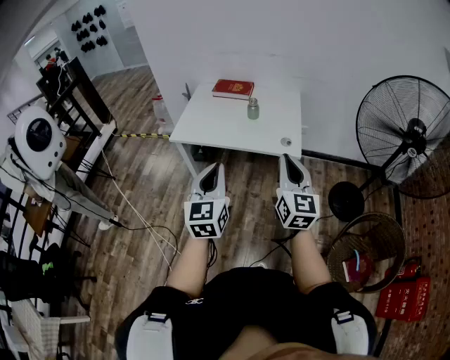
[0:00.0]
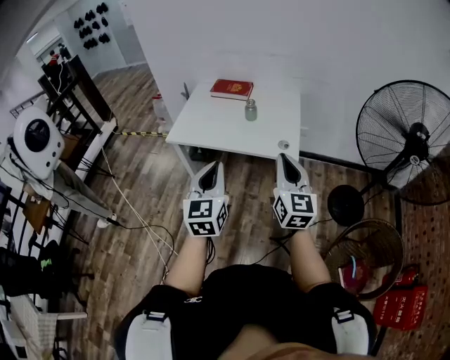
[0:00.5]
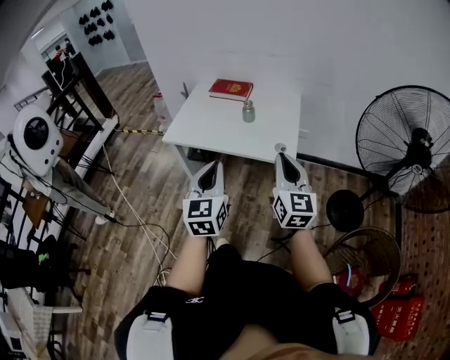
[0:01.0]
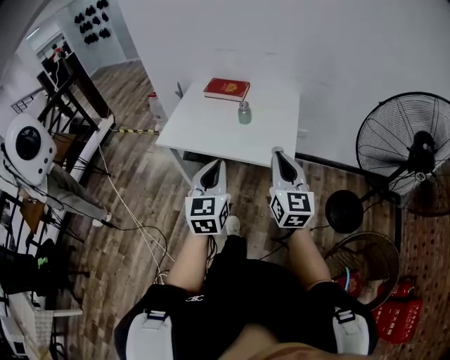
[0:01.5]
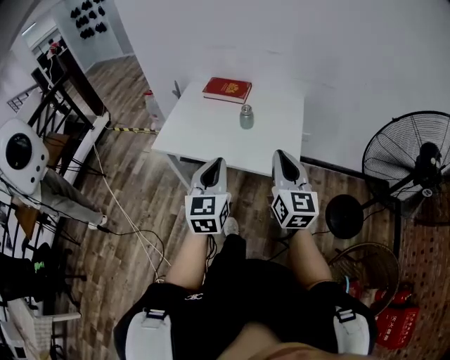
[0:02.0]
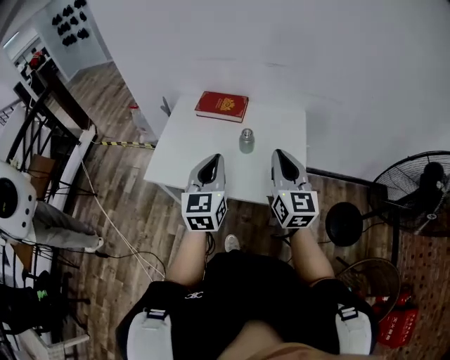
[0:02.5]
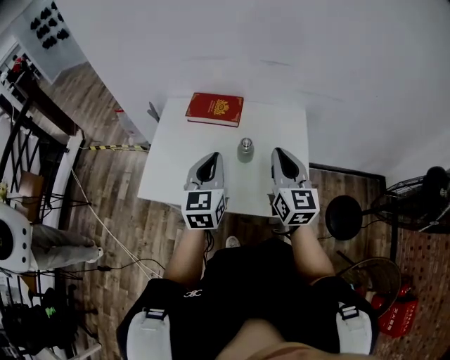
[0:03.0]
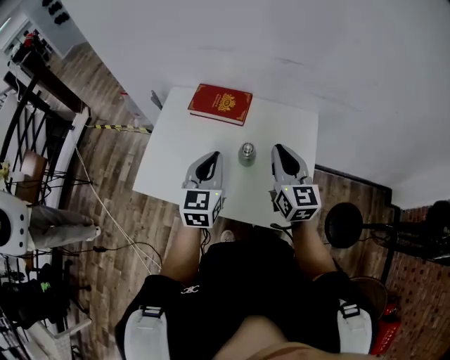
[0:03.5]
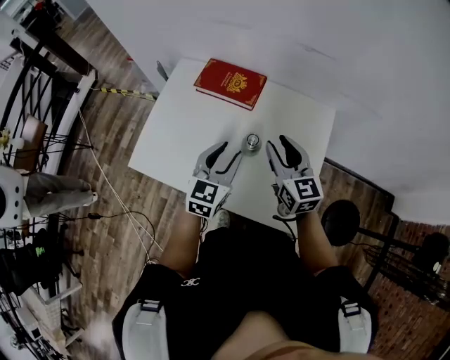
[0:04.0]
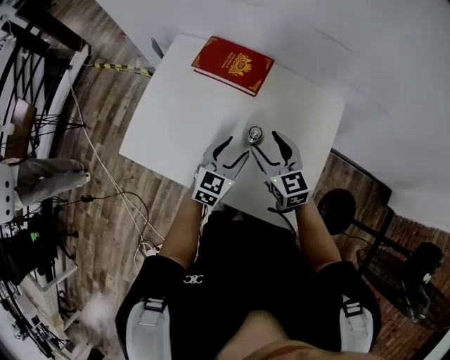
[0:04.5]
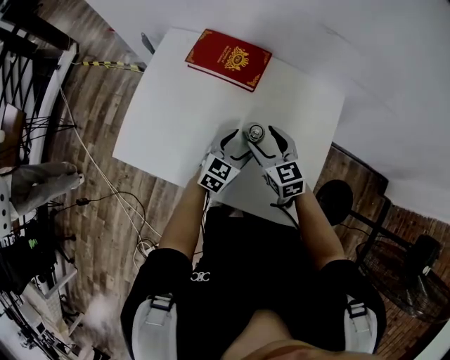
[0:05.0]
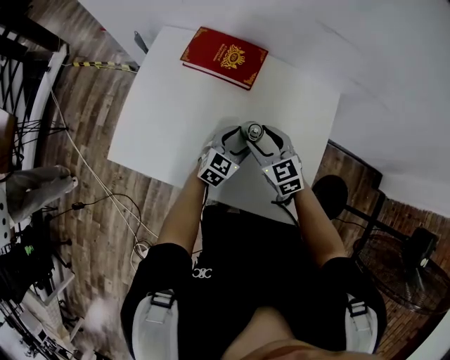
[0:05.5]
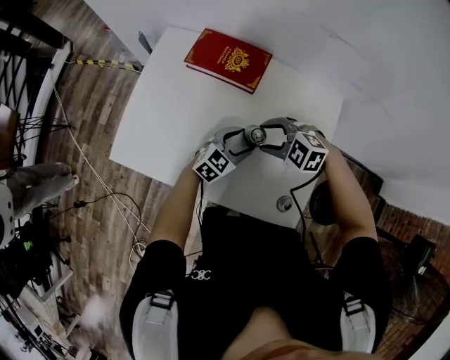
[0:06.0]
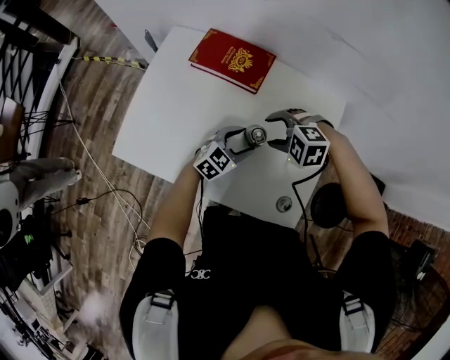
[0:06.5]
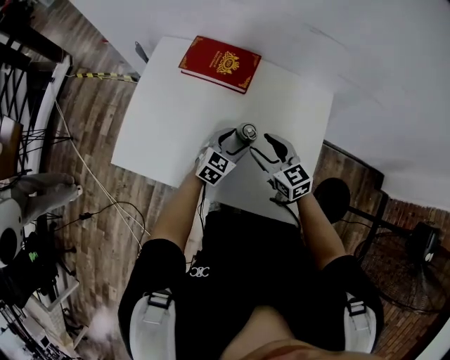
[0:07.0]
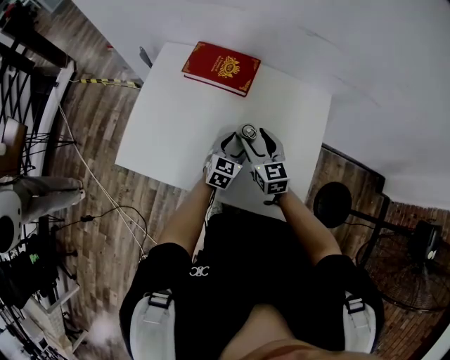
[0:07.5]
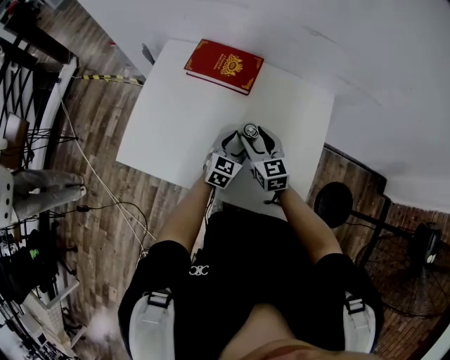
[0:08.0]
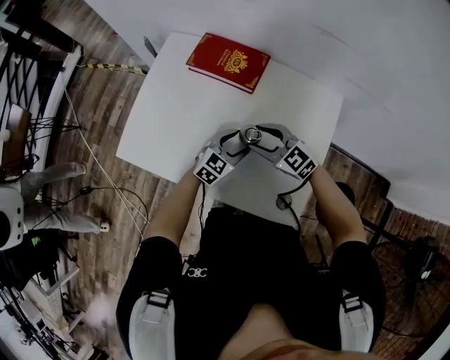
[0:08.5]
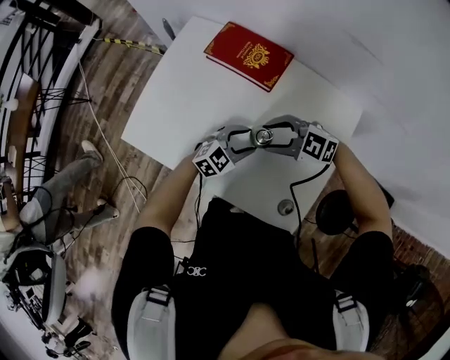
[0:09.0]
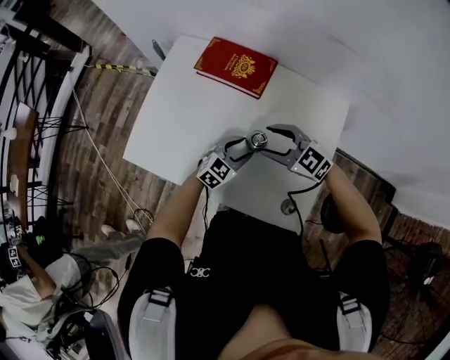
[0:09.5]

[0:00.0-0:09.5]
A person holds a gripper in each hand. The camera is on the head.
0:00.0 to 0:02.0: The right gripper goes about 20 cm forward. Meanwhile the left gripper travels forward and to the right by about 20 cm.
0:02.0 to 0:04.0: The grippers both shift forward by about 40 cm. The right gripper changes its angle by some 20 degrees, and opens; the left gripper opens up.
0:04.0 to 0:05.5: The two grippers go roughly 15 cm downward. The right gripper changes its angle by about 30 degrees, and opens, while the left gripper opens up.
0:05.5 to 0:07.5: The right gripper changes its angle by about 20 degrees.
0:07.5 to 0:09.5: The right gripper rotates roughly 50 degrees.

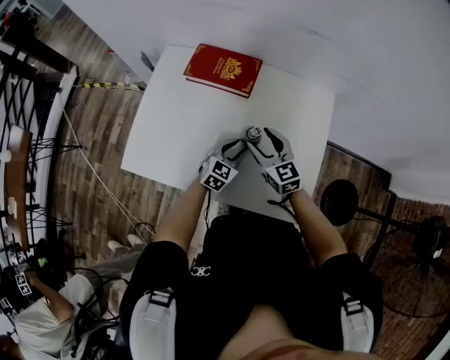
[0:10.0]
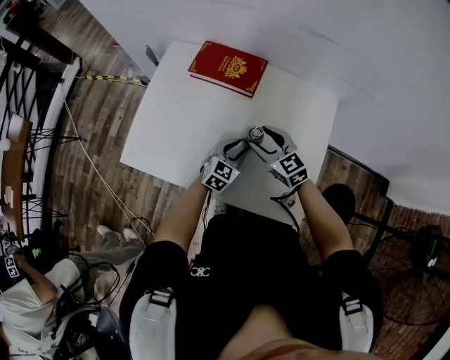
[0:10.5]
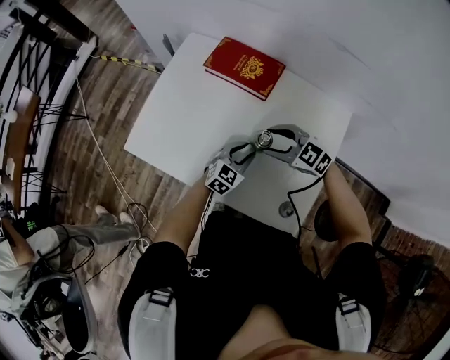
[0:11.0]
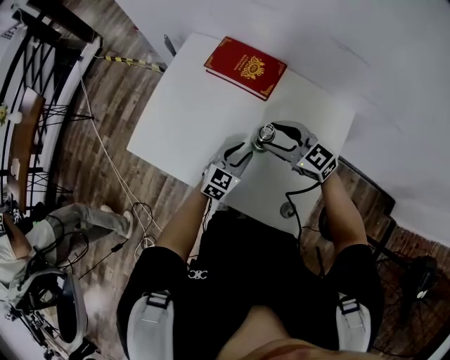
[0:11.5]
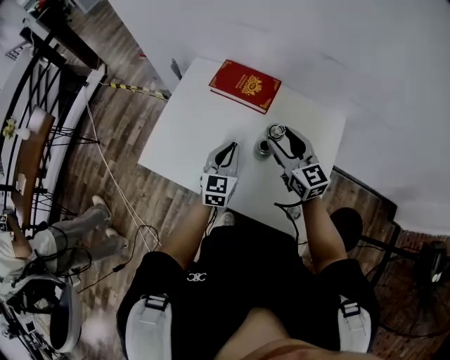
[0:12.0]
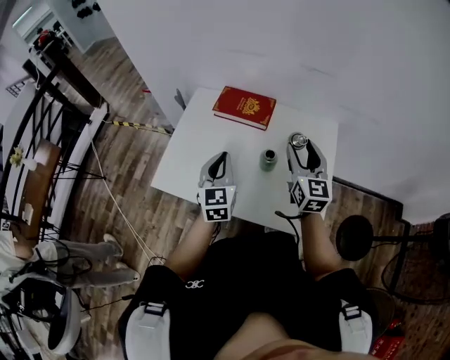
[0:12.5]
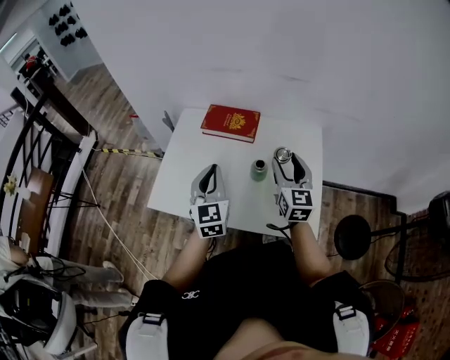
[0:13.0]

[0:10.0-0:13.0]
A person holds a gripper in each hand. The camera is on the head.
0:10.0 to 0:11.5: The right gripper changes place by approximately 5 cm, and rotates approximately 40 degrees.
0:11.5 to 0:13.0: The left gripper moves upward and to the left, roughly 25 cm, turns by roughly 30 degrees, and closes its fingers, while the right gripper is displaced upward and backward by roughly 15 cm, and swivels about 70 degrees.

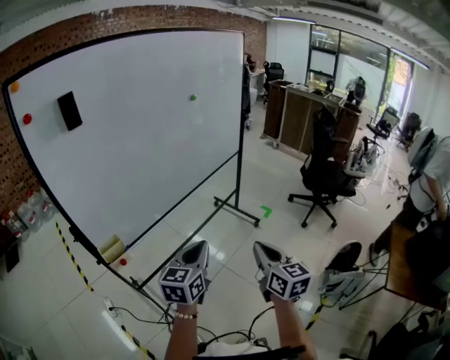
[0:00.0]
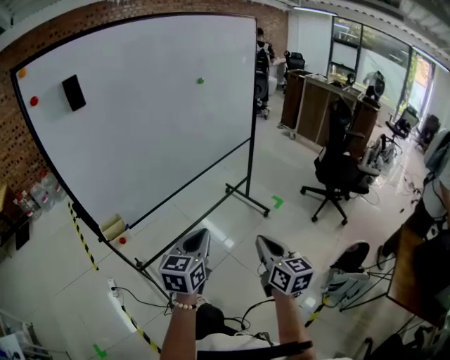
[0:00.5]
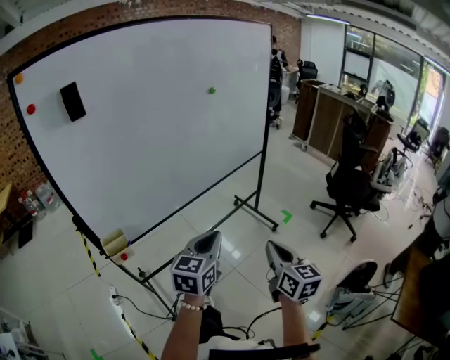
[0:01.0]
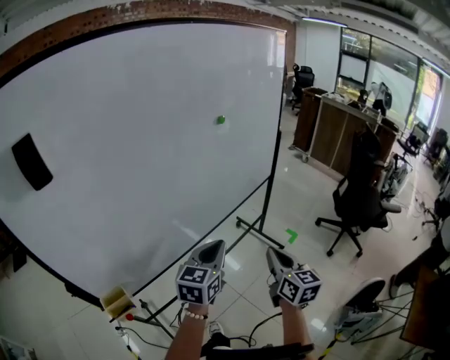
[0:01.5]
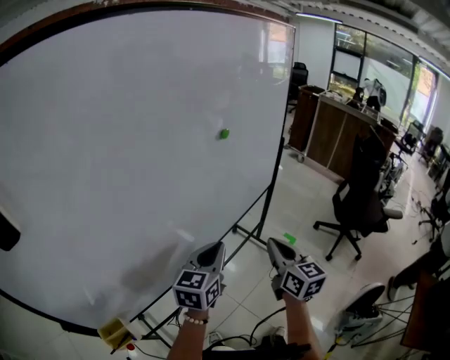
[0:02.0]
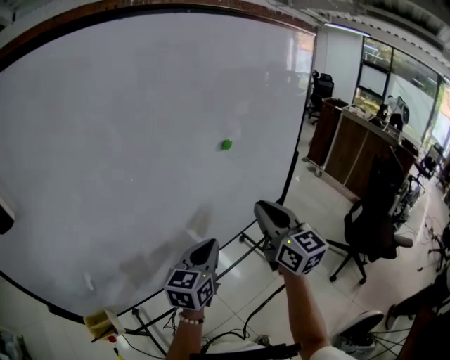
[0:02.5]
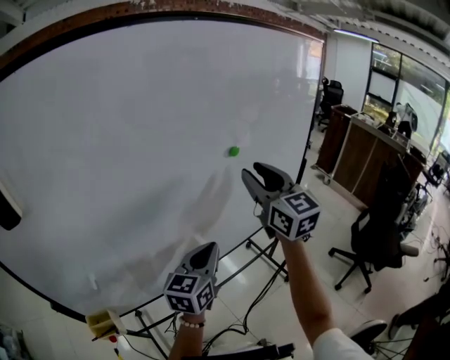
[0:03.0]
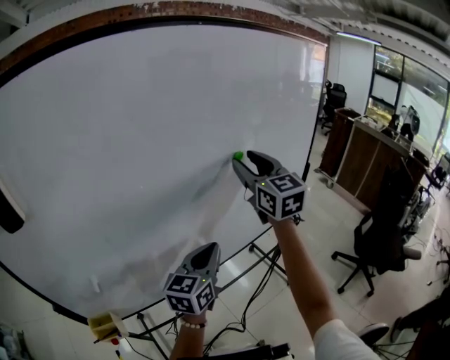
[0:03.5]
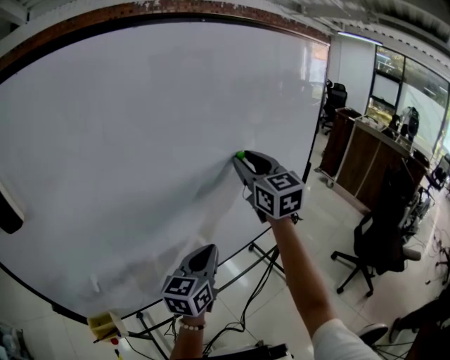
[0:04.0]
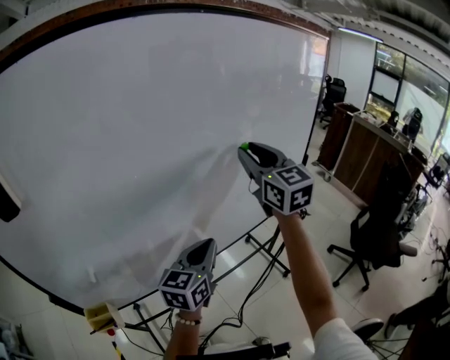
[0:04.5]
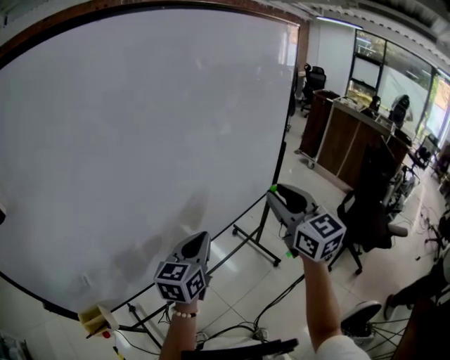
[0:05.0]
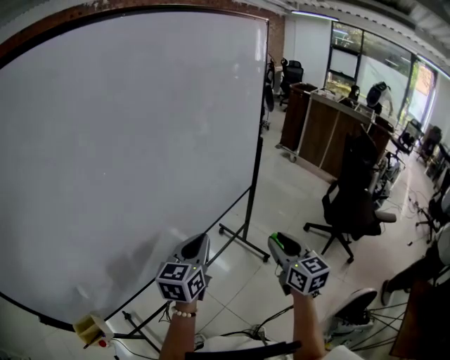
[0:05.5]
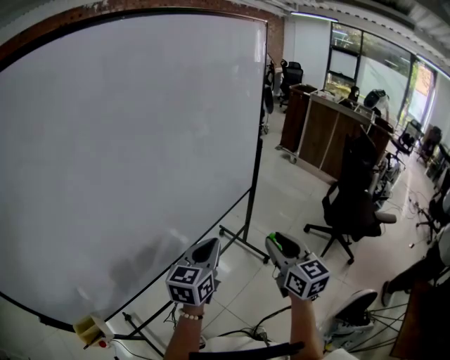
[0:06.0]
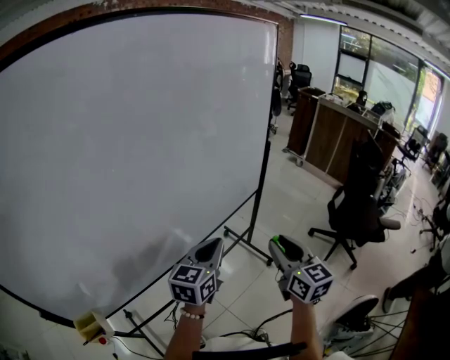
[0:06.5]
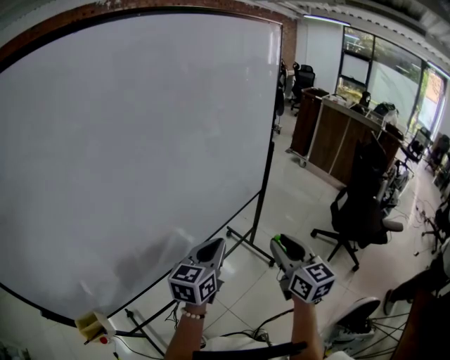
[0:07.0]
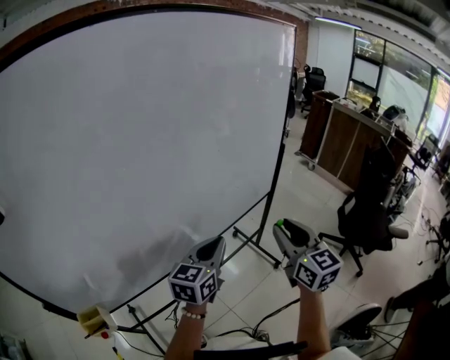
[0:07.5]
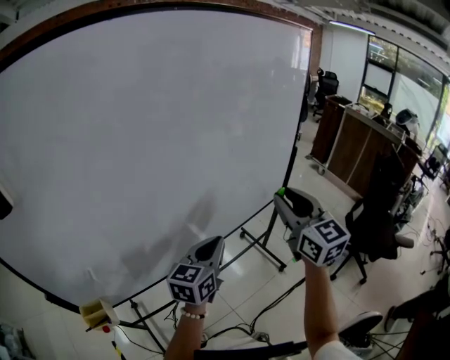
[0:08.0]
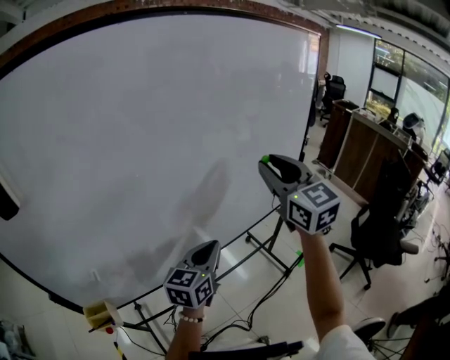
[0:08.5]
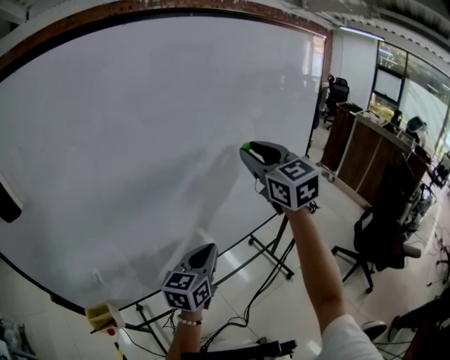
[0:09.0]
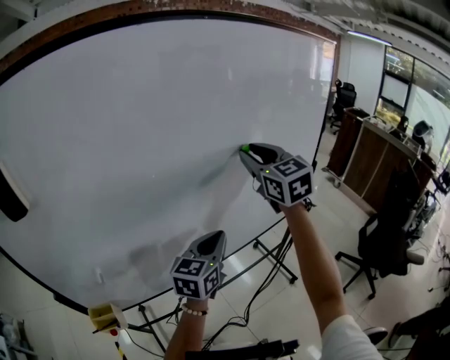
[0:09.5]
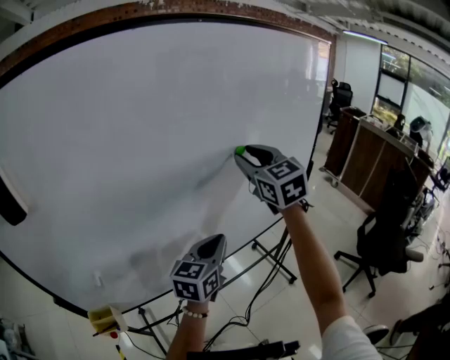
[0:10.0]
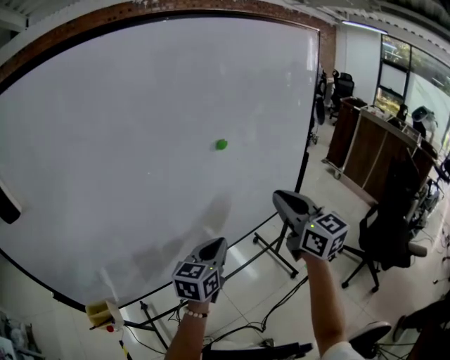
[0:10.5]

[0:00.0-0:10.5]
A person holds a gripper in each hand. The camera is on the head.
0:00.0 to 0:02.0: The pair of grippers is taken forward, approximately 40 cm.
0:02.0 to 0:04.0: The right gripper goes some 30 cm forward and upward, rotates about 30 degrees, and opens up. Meanwhile the left gripper shifts by roughly 5 cm.
0:04.0 to 0:06.5: The right gripper shifts about 35 cm to the right, backward and downward, and swivels roughly 20 degrees, while the left gripper is displaced to the right by approximately 15 cm.
0:06.5 to 0:08.5: The left gripper travels to the left by some 10 cm. Meanwhile the right gripper shifts roughly 25 cm upward, forward and to the left, and turns by some 30 degrees.
0:08.5 to 0:10.5: The right gripper heads downward, covering about 10 cm, and closes its fingers.

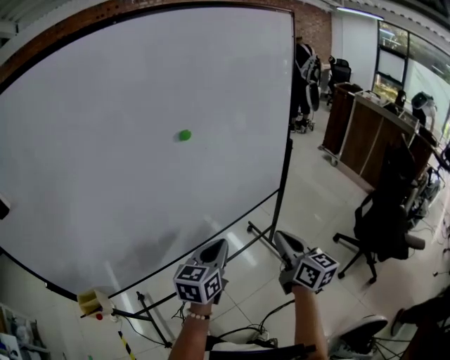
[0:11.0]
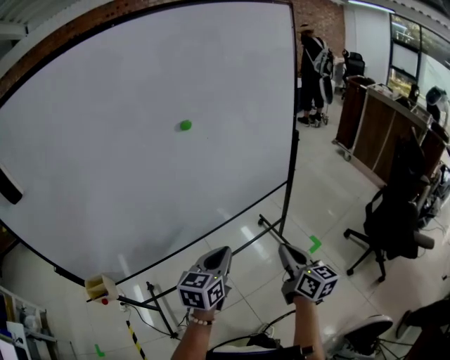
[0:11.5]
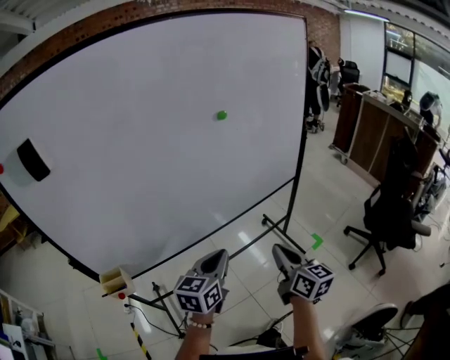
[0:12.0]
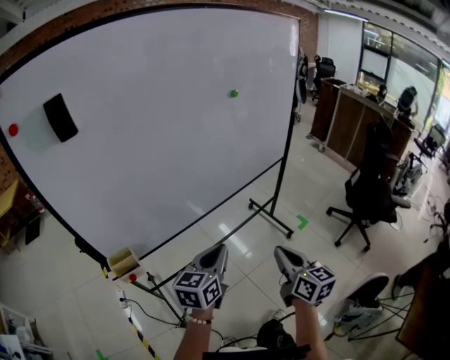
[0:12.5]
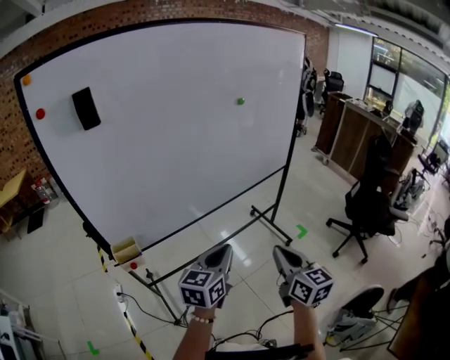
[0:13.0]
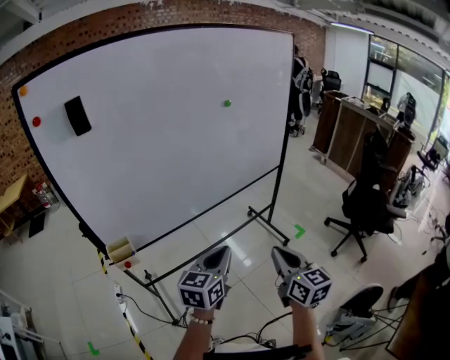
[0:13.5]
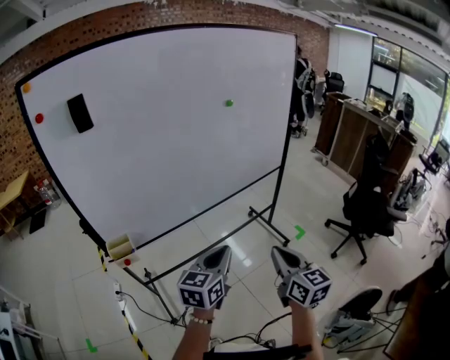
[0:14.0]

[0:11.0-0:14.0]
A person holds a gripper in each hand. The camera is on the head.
0:11.0 to 0:12.5: Both grippers travel together backward and to the left, about 35 cm.
0:12.5 to 0:14.0: The right gripper goes some 5 cm backward. Meanwhile the left gripper heads to the right and backward, covering some 10 cm.
